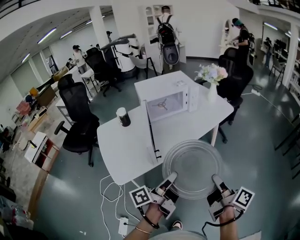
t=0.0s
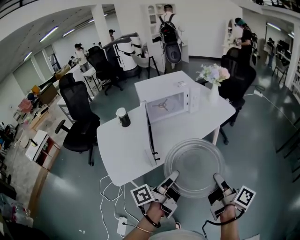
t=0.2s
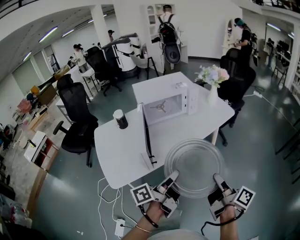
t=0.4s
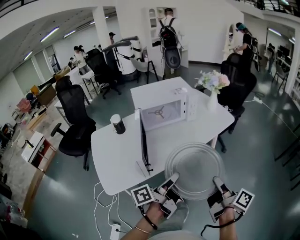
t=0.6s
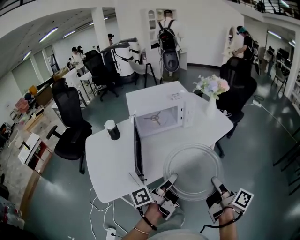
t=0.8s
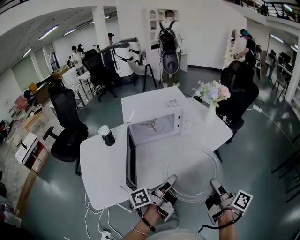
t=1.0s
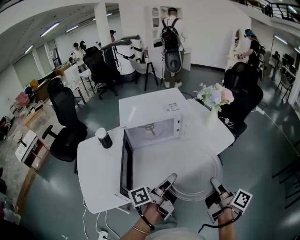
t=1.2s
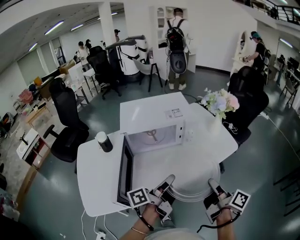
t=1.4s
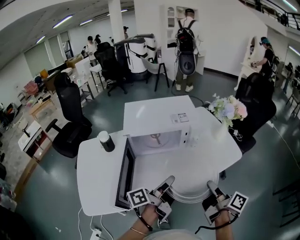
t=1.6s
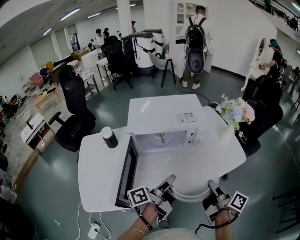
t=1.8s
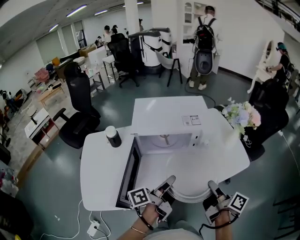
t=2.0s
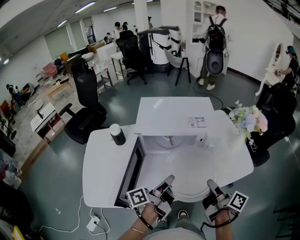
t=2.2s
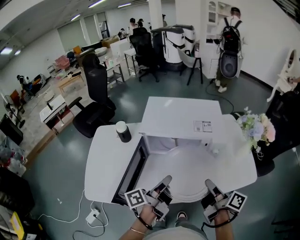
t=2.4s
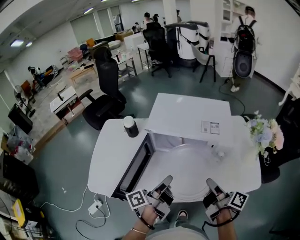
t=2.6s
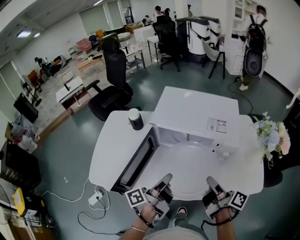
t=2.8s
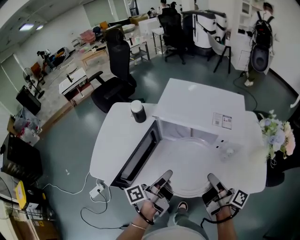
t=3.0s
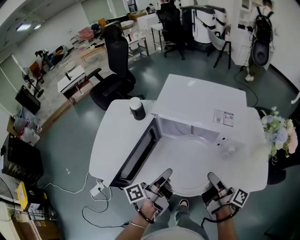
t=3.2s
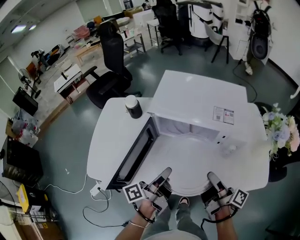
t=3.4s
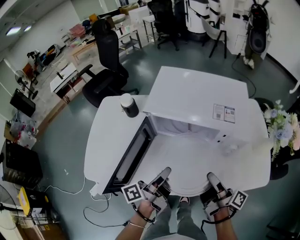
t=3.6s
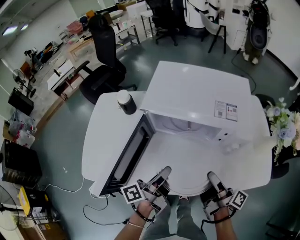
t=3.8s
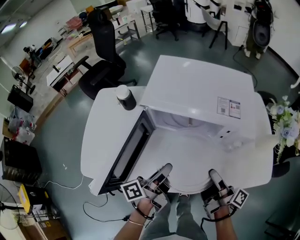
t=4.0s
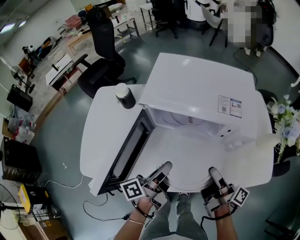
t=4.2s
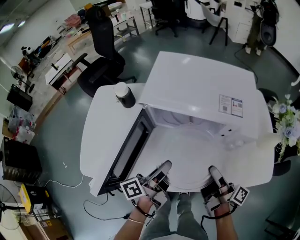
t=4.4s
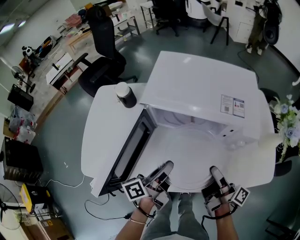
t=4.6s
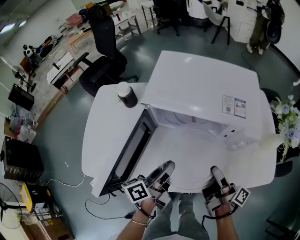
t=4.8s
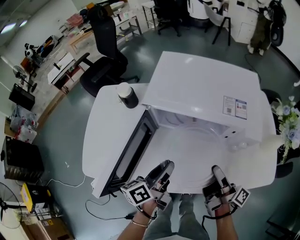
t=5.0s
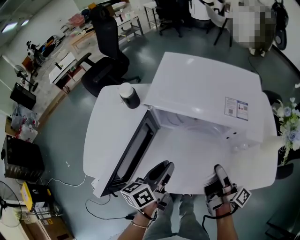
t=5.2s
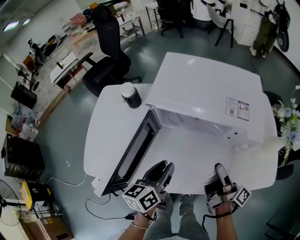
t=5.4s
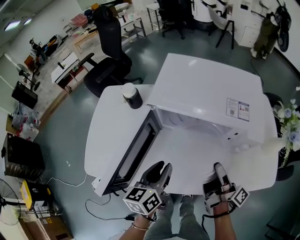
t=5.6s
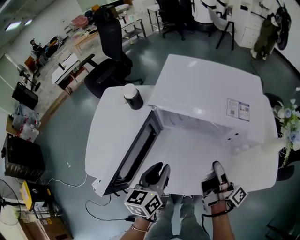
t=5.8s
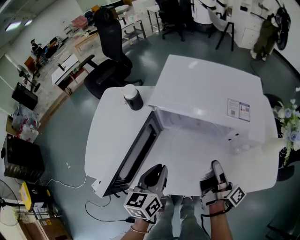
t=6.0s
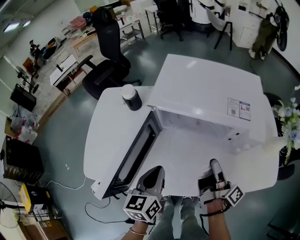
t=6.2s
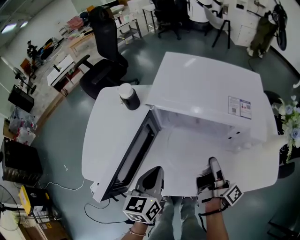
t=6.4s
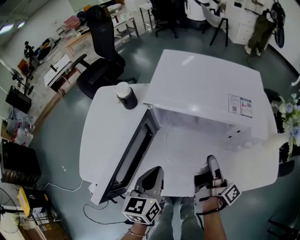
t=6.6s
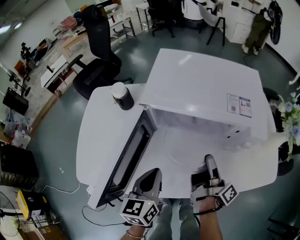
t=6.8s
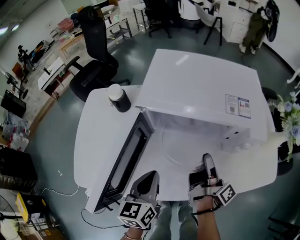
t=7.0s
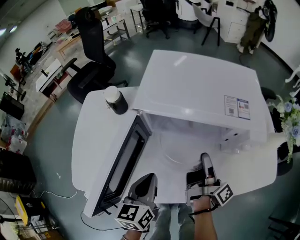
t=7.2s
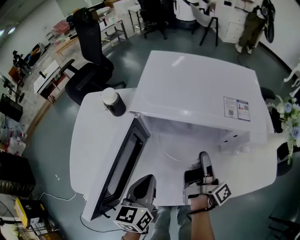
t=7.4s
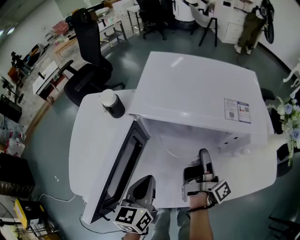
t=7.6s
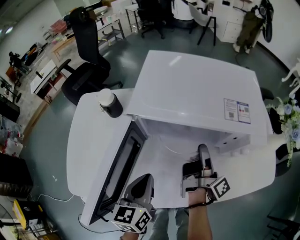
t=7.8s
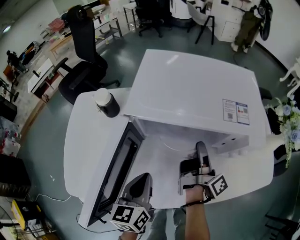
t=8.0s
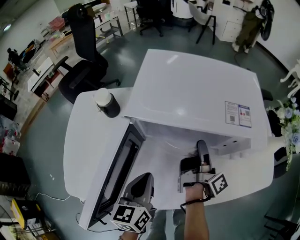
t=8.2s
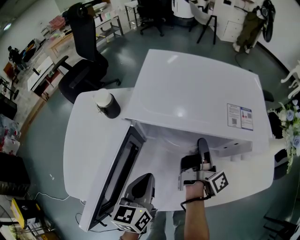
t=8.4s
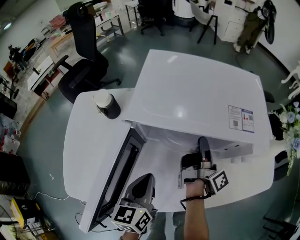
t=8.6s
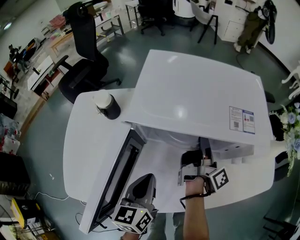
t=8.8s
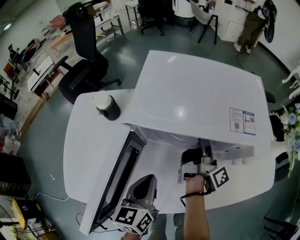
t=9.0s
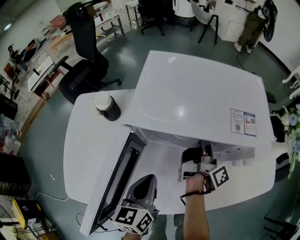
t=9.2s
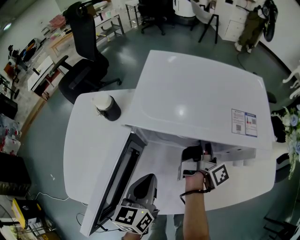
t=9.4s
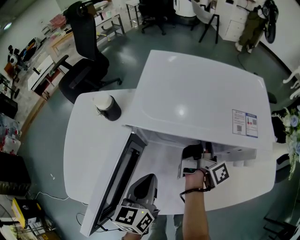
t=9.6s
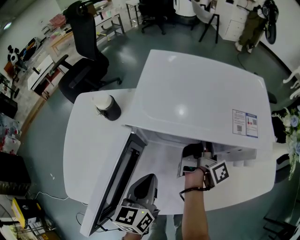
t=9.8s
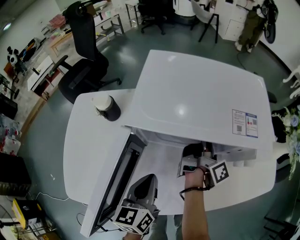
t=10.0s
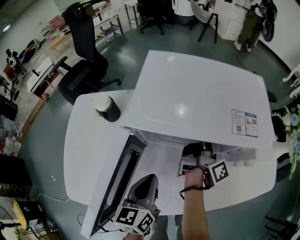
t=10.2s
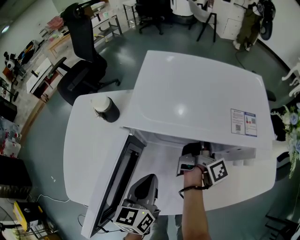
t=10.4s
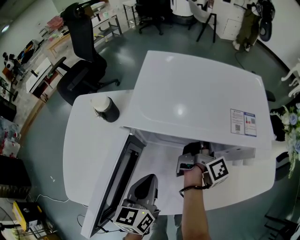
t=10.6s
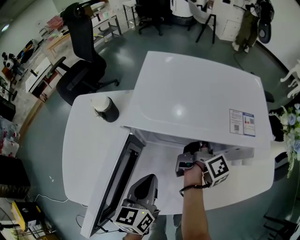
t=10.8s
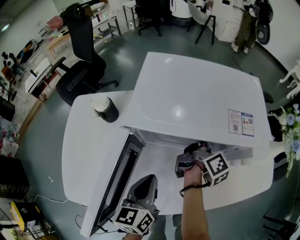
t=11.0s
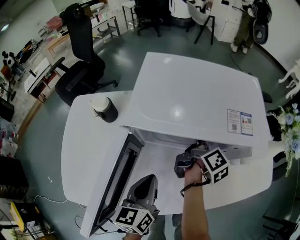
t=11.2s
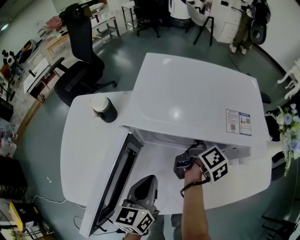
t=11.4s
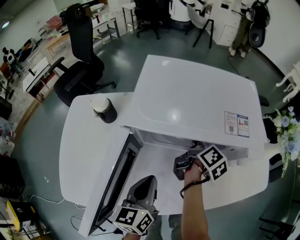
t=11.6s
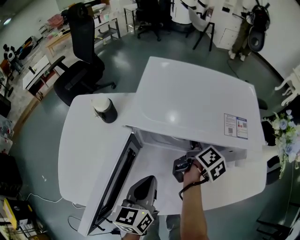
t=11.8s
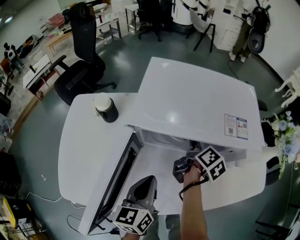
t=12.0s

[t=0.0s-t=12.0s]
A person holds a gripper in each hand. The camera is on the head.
t=0.0s to t=1.6s: Both grippers travel together forward, about 35 cm.
t=1.6s to t=3.0s: The right gripper shifts by some 15 cm, and changes its angle by about 40 degrees; the left gripper shifts by about 10 cm, and swivels approximately 30 degrees.
t=3.0s to t=4.4s: Both grippers move downward, roughly 5 cm.
t=4.4s to t=6.0s: The left gripper rolls clockwise, seen from behind, by some 50 degrees.
t=6.0s to t=7.6s: The right gripper goes some 5 cm forward.
t=7.6s to t=9.0s: The right gripper travels forward by approximately 10 cm.
t=9.0s to t=10.4s: The grippers stay close to where they were, moving slightly.
t=10.4s to t=12.0s: The right gripper changes its angle by about 40 degrees.

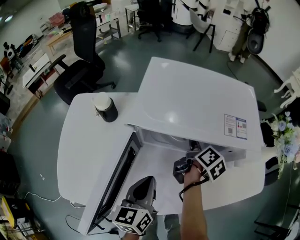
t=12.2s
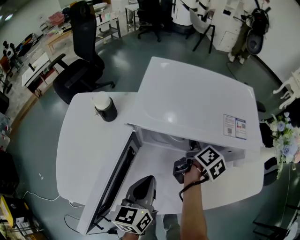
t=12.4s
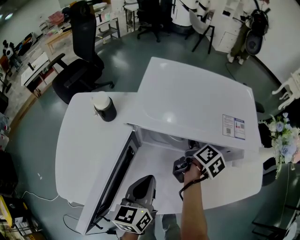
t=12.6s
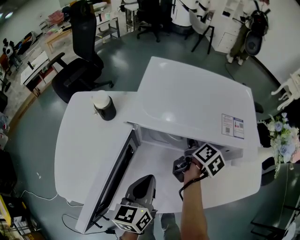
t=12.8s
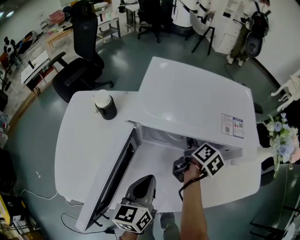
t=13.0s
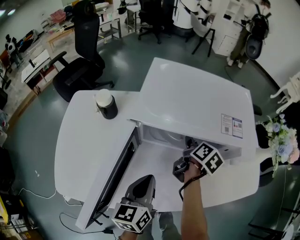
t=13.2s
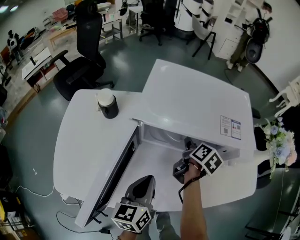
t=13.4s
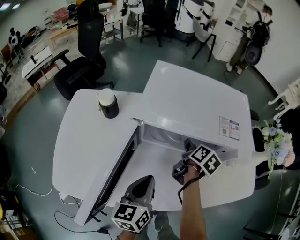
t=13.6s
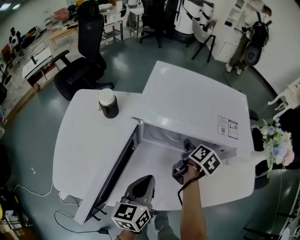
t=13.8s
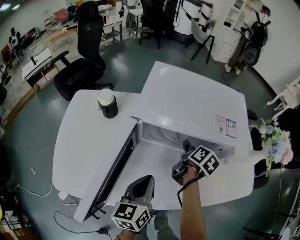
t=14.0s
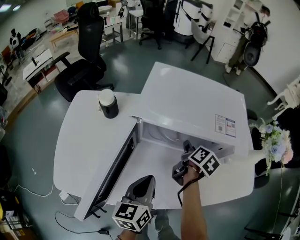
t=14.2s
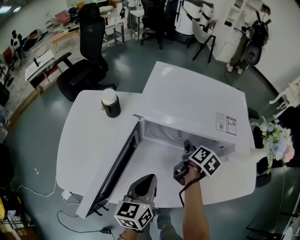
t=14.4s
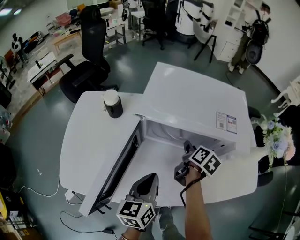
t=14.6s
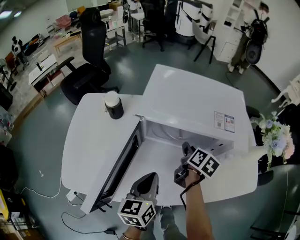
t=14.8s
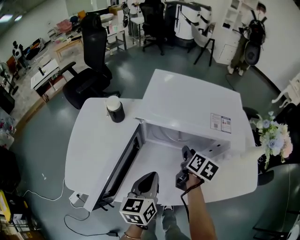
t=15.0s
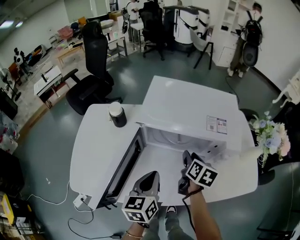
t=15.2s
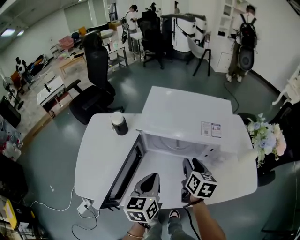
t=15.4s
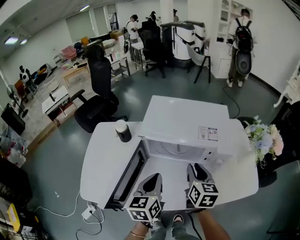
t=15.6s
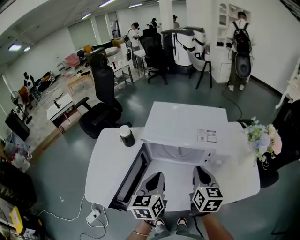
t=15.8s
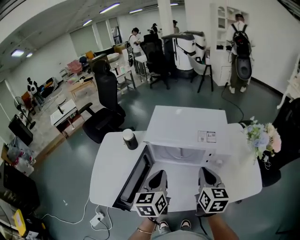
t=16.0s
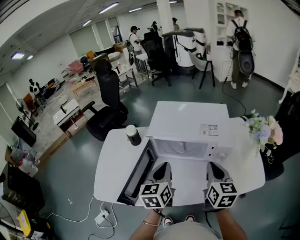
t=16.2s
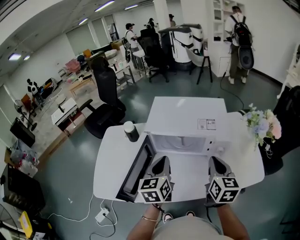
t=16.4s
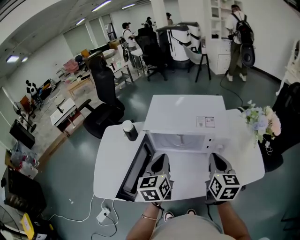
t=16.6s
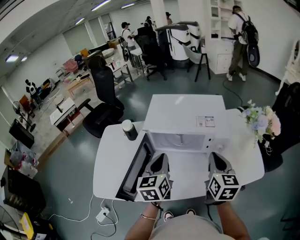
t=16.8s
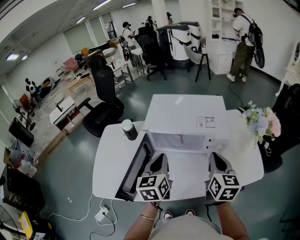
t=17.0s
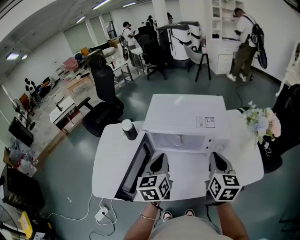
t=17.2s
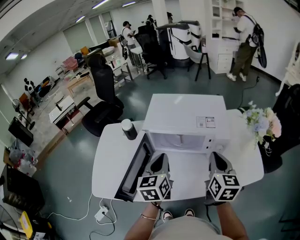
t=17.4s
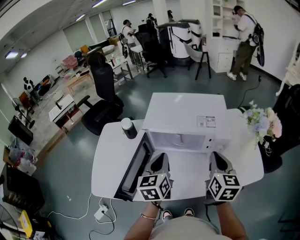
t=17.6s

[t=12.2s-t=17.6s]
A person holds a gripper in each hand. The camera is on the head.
t=12.2s to t=13.6s: The grippers move only a little.
t=13.6s to t=15.0s: The right gripper moves backward, about 5 cm.
t=15.0s to t=16.2s: The left gripper is displaced upward by about 10 cm; the right gripper is displaced upward and backward by roughly 20 cm, changes its angle by approximately 40 degrees, and closes its fingers.
t=16.2s to t=17.6s: The grippers stay close to where they were, moving slightly.

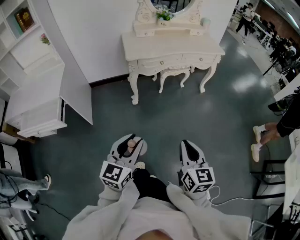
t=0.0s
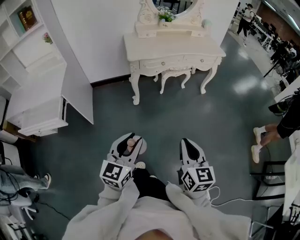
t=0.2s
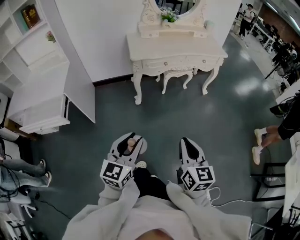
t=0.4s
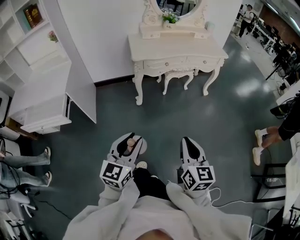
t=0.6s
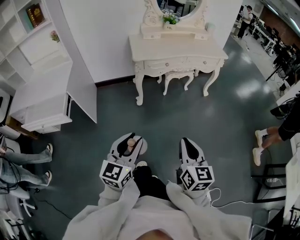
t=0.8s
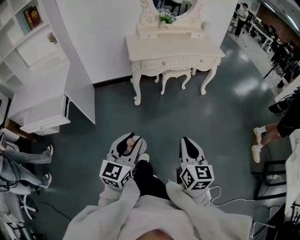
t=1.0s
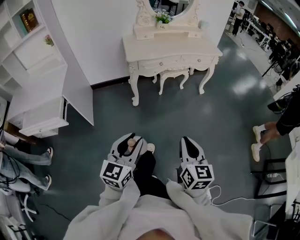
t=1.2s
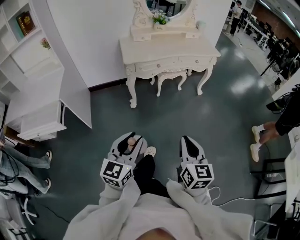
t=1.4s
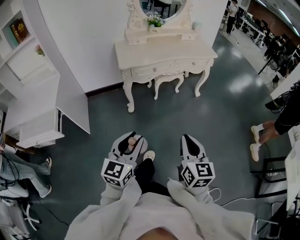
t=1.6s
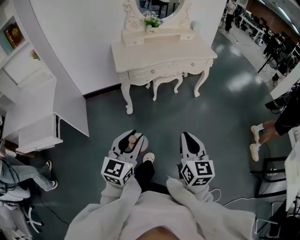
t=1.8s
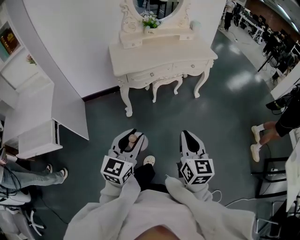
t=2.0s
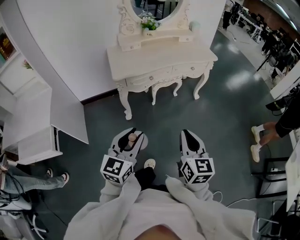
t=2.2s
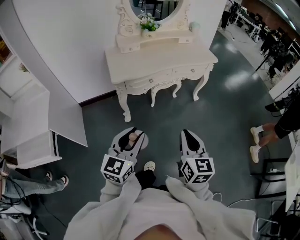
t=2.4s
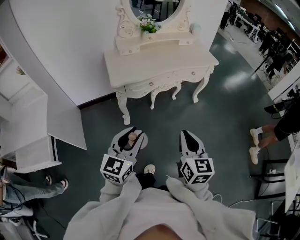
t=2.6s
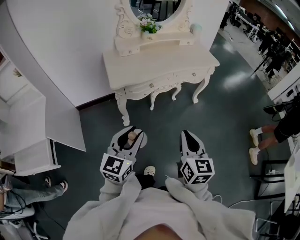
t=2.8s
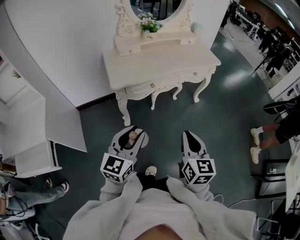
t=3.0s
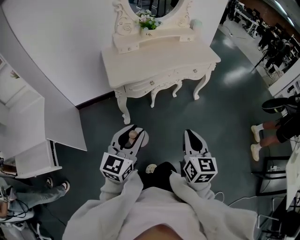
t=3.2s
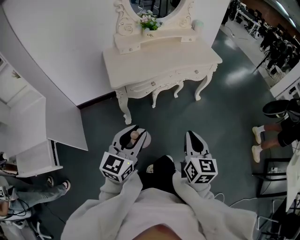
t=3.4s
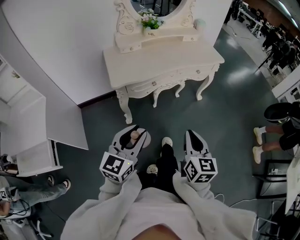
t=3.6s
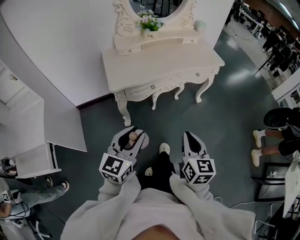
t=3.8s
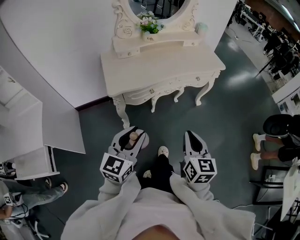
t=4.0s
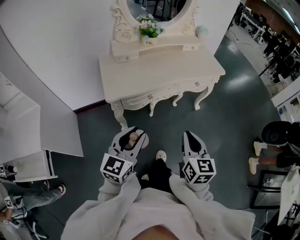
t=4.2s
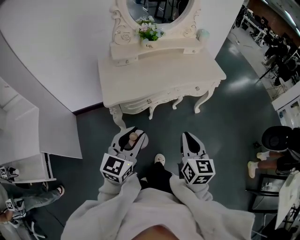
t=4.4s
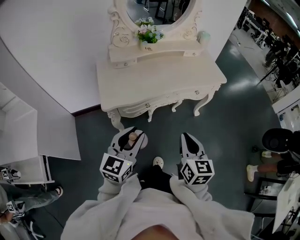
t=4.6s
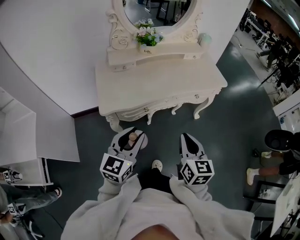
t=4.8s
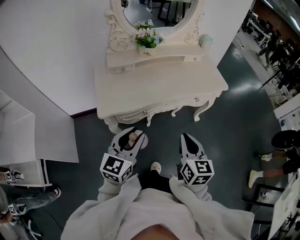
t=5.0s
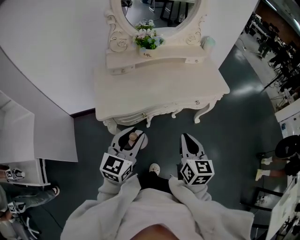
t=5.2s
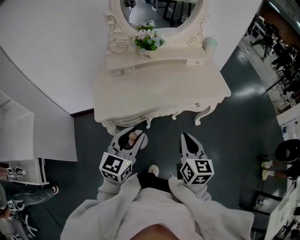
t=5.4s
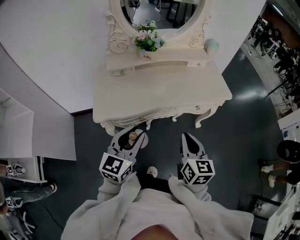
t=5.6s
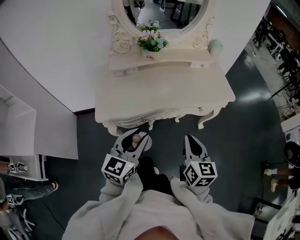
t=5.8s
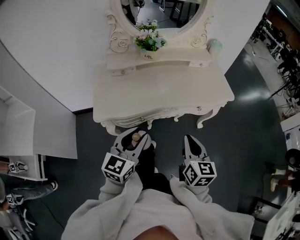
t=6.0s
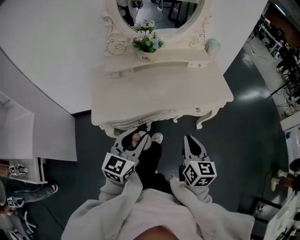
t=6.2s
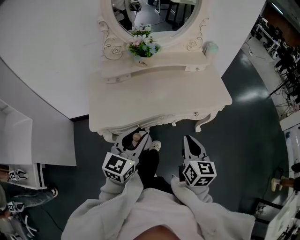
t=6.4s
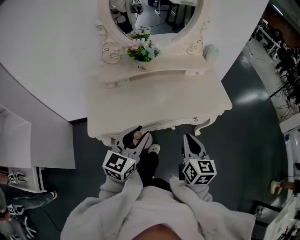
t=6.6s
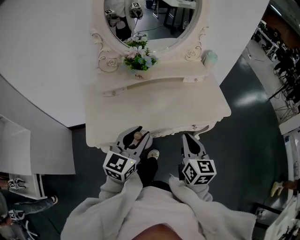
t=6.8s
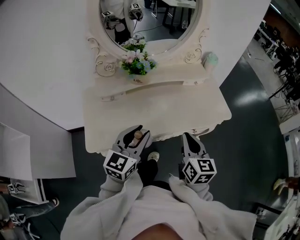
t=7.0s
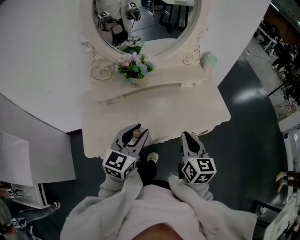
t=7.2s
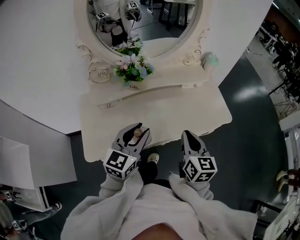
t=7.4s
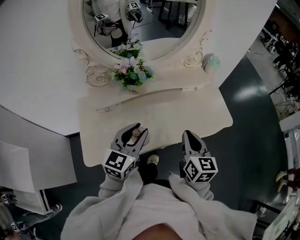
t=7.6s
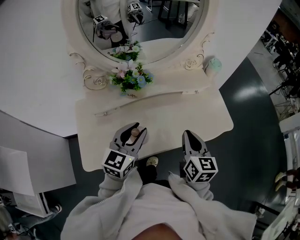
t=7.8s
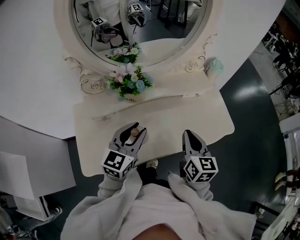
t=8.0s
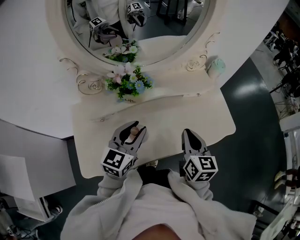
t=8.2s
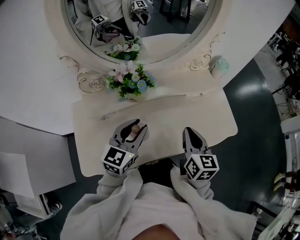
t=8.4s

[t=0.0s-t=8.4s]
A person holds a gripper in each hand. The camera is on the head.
t=0.0s to t=1.4s: The grippers move only a little.
t=1.4s to t=2.8s: Both grippers move forward, approximately 25 cm.
t=2.8s to t=4.2s: Both grippers move forward, approximately 10 cm.
t=4.2s to t=5.6s: The grippers both shift forward by approximately 20 cm.
t=5.6s to t=7.0s: The two grippers go about 15 cm forward.
t=7.0s to t=8.4s: The grippers both shift forward by roughly 15 cm.
